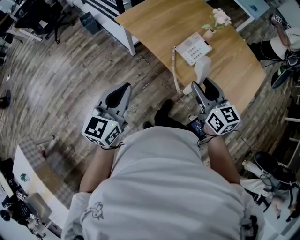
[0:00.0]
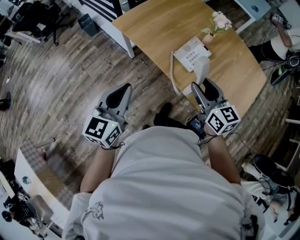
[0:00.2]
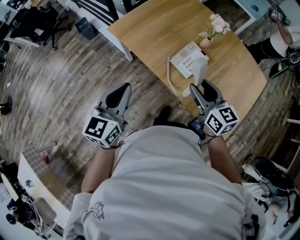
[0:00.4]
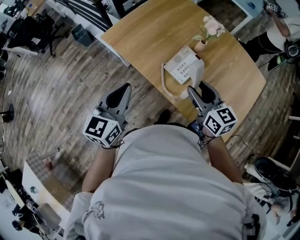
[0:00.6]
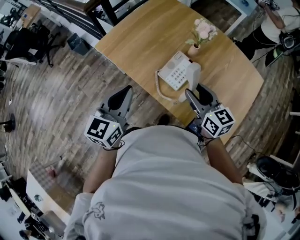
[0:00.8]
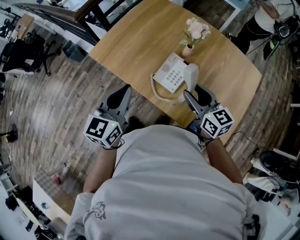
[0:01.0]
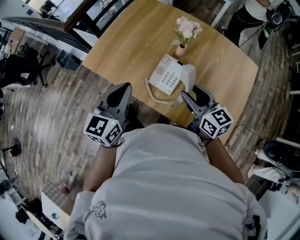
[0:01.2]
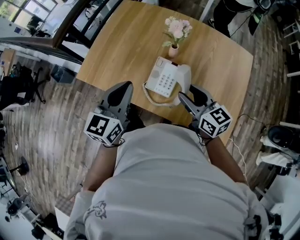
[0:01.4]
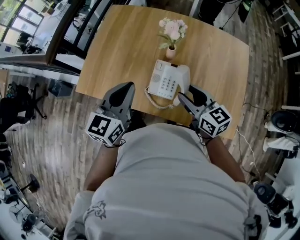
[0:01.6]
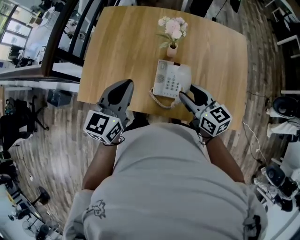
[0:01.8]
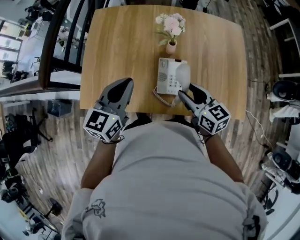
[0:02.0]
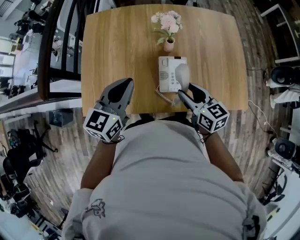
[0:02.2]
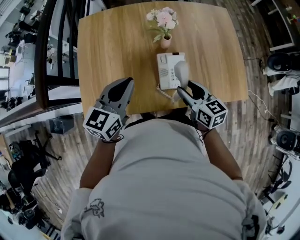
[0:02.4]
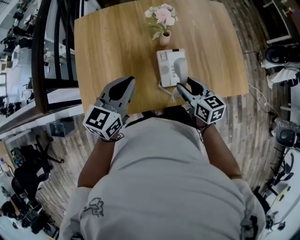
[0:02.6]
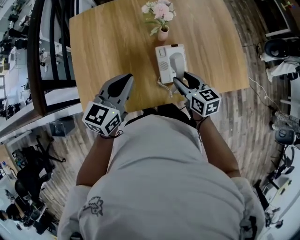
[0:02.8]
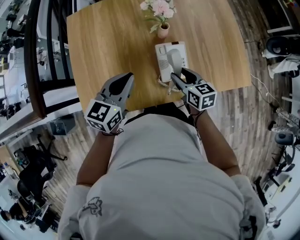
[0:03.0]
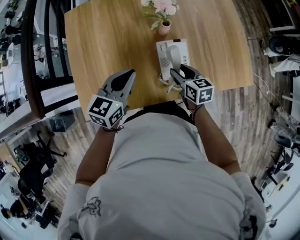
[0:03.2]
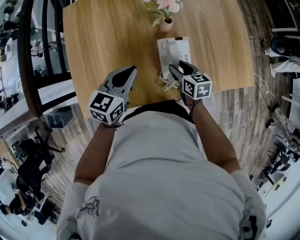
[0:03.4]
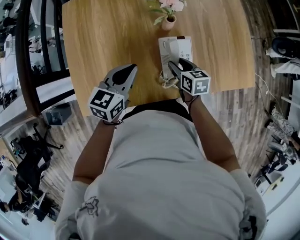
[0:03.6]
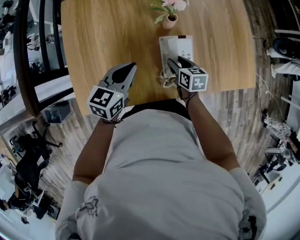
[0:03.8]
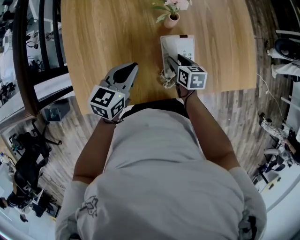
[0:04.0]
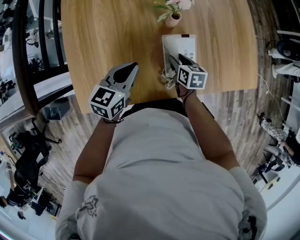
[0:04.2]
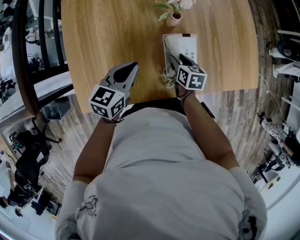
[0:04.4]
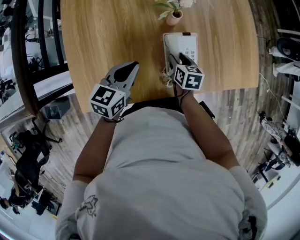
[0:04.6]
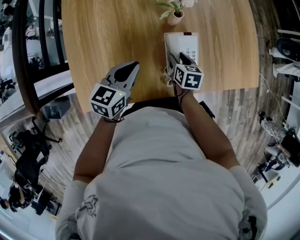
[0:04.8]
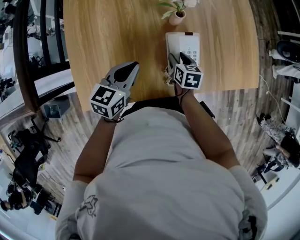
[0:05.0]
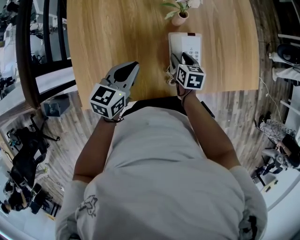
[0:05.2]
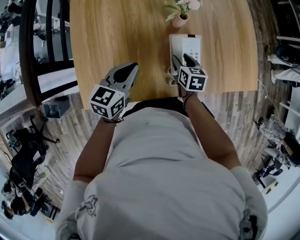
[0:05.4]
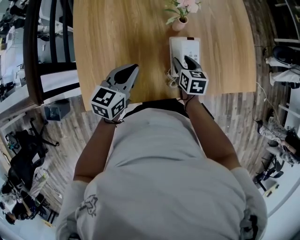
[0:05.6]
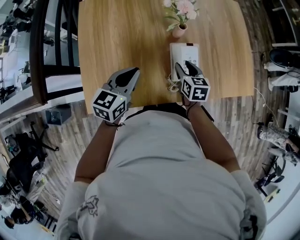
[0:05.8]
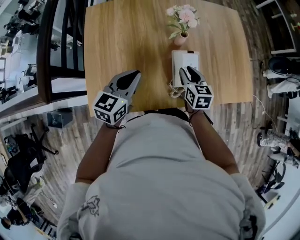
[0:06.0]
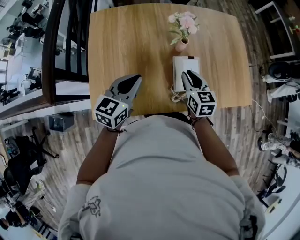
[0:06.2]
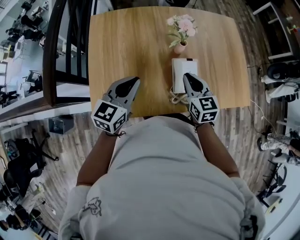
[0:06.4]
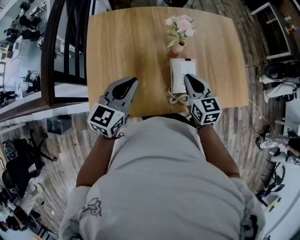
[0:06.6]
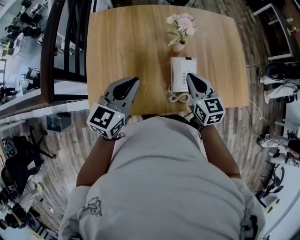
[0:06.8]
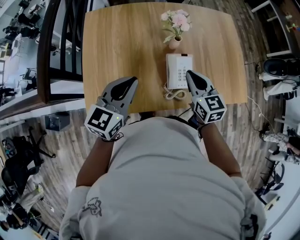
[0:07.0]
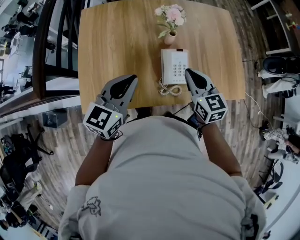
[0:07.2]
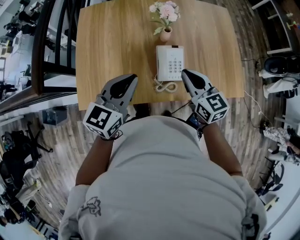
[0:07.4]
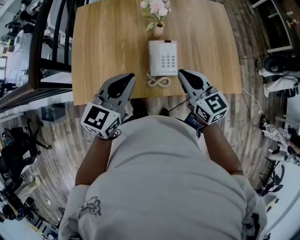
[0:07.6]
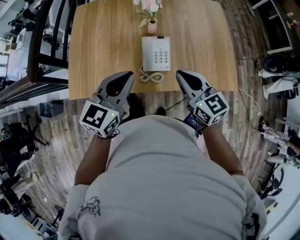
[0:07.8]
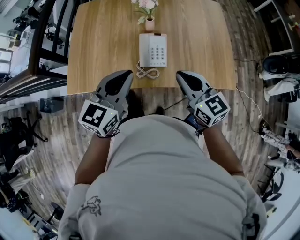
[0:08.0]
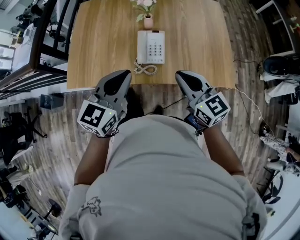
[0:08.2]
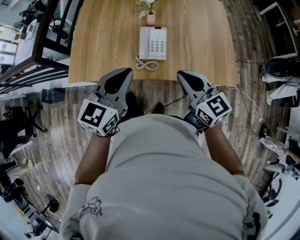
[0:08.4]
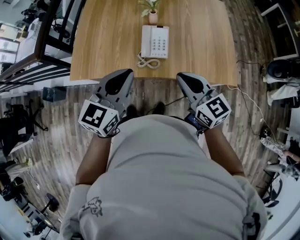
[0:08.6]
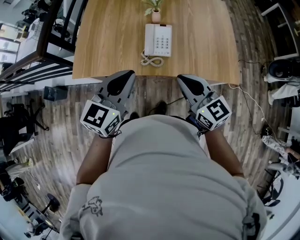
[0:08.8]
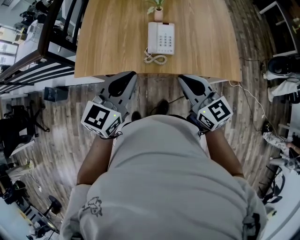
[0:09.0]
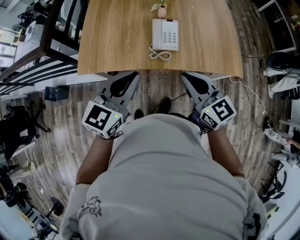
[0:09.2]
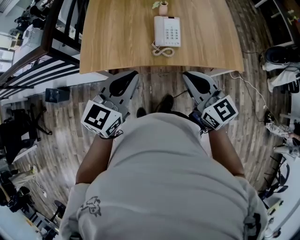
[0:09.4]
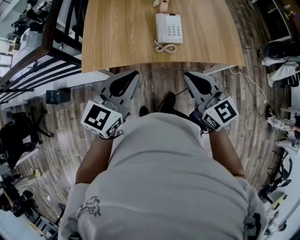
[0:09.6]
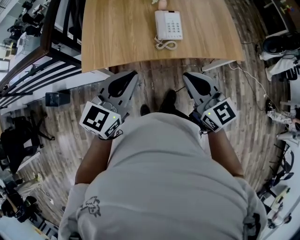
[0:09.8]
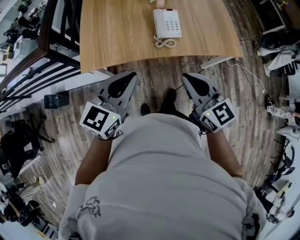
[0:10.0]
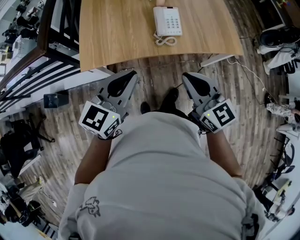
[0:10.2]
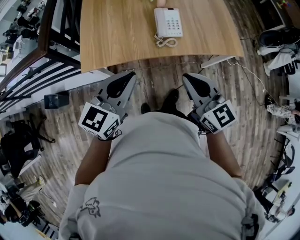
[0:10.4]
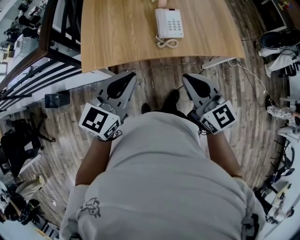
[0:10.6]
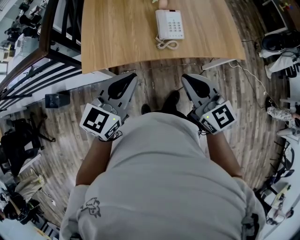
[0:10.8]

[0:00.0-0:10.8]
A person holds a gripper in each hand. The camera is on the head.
0.0 to 1.6 s: The right gripper shifts approximately 20 cm forward and to the right. The left gripper goes approximately 35 cm forward and to the right, and swivels approximately 30 degrees.
1.6 to 3.0 s: The left gripper changes place by about 15 cm, and turns by some 30 degrees. Meanwhile the right gripper is displaced downward by approximately 15 cm, and changes its angle by roughly 40 degrees.
3.0 to 4.6 s: The left gripper heads downward, covering about 10 cm. The right gripper travels downward and forward by approximately 15 cm.
4.6 to 6.2 s: The right gripper travels upward by approximately 15 cm, turns by approximately 30 degrees, and closes its fingers. The left gripper goes roughly 10 cm upward, backward and to the left.
6.2 to 7.8 s: Both grippers travel together to the right, backward and upward, some 20 cm. The right gripper turns by some 30 degrees.
7.8 to 9.2 s: Both grippers move backward, approximately 15 cm.
9.2 to 10.8 s: The left gripper is displaced to the left by about 10 cm. Meanwhile the right gripper shifts some 10 cm to the left and backward.

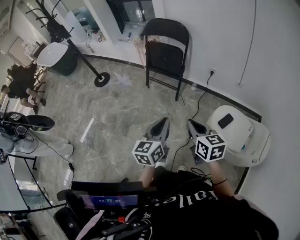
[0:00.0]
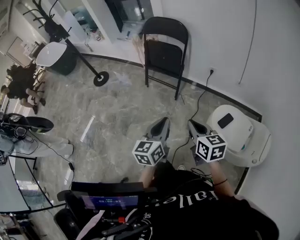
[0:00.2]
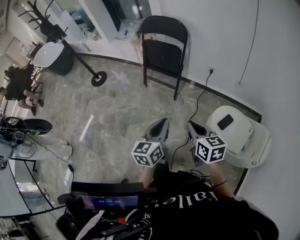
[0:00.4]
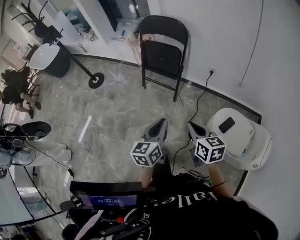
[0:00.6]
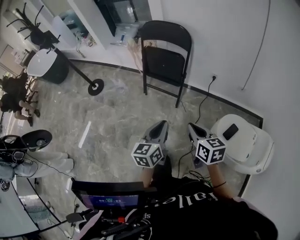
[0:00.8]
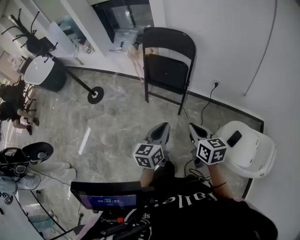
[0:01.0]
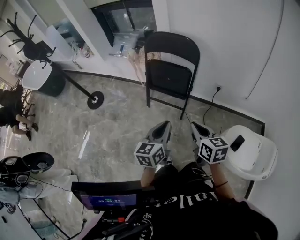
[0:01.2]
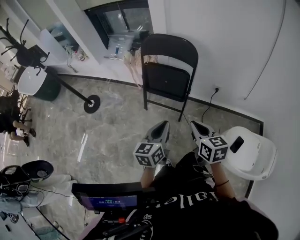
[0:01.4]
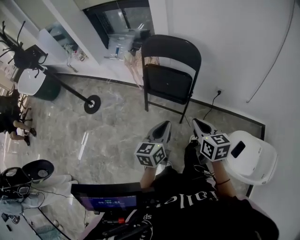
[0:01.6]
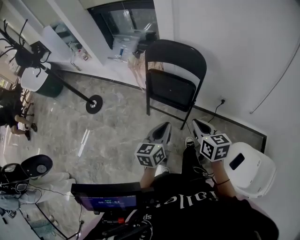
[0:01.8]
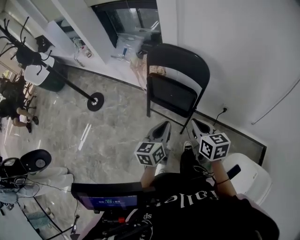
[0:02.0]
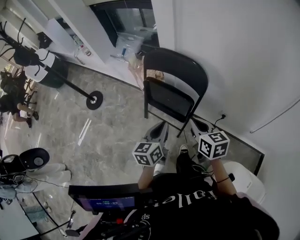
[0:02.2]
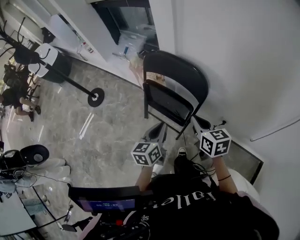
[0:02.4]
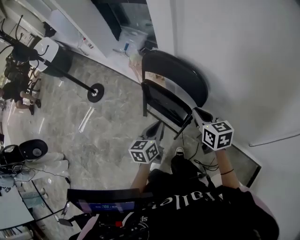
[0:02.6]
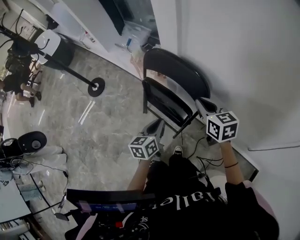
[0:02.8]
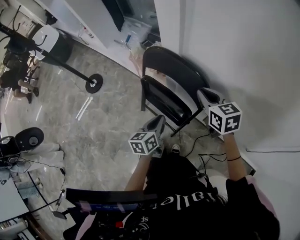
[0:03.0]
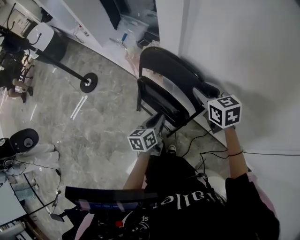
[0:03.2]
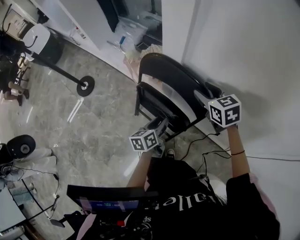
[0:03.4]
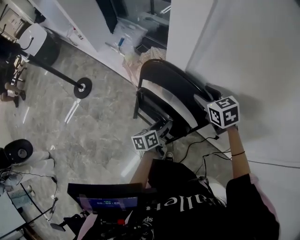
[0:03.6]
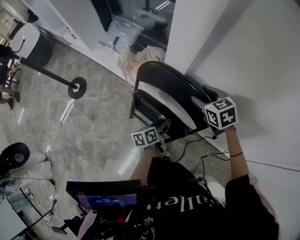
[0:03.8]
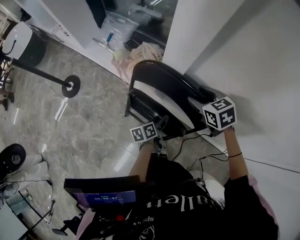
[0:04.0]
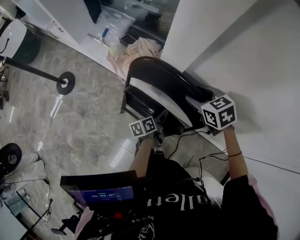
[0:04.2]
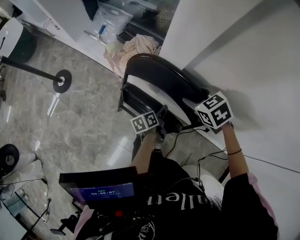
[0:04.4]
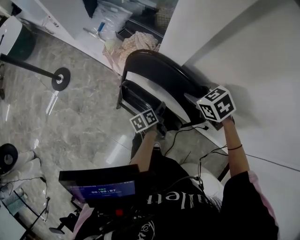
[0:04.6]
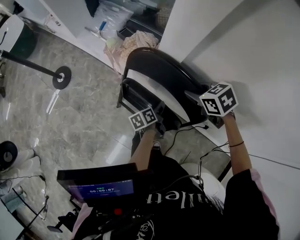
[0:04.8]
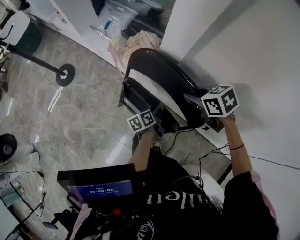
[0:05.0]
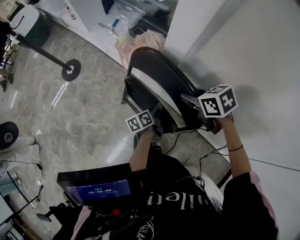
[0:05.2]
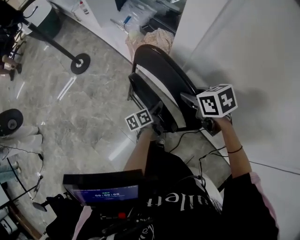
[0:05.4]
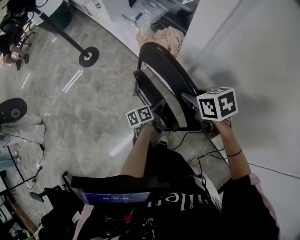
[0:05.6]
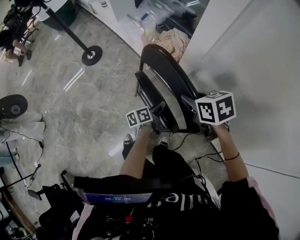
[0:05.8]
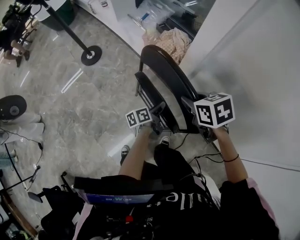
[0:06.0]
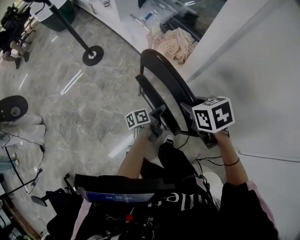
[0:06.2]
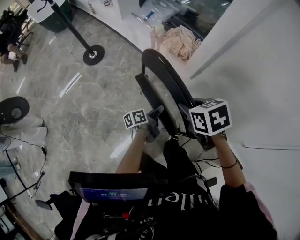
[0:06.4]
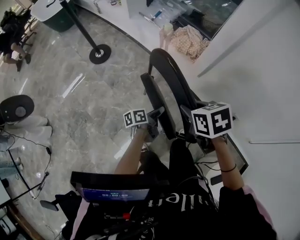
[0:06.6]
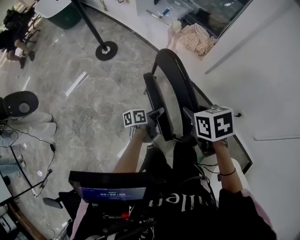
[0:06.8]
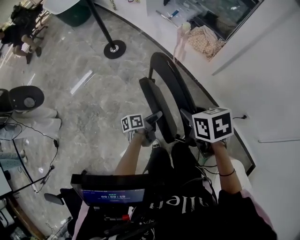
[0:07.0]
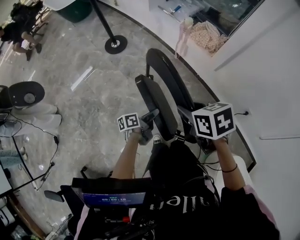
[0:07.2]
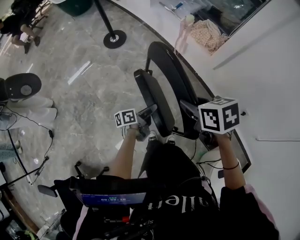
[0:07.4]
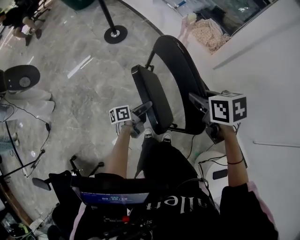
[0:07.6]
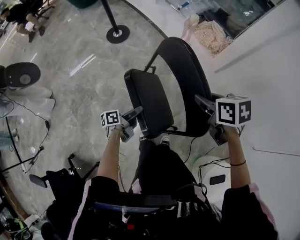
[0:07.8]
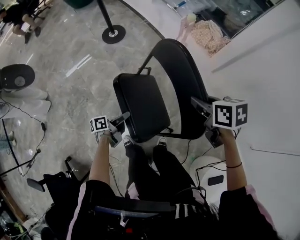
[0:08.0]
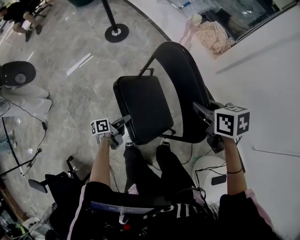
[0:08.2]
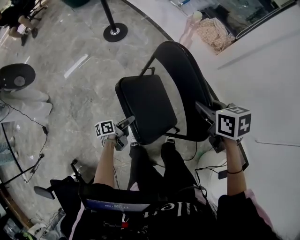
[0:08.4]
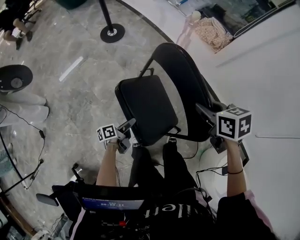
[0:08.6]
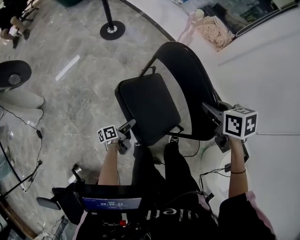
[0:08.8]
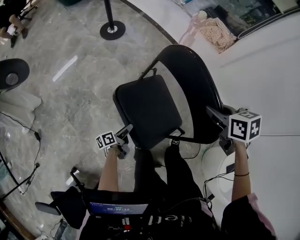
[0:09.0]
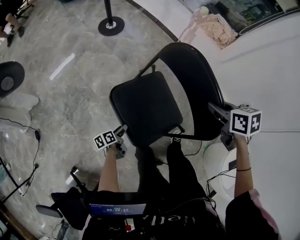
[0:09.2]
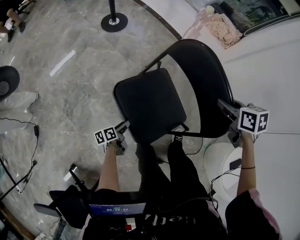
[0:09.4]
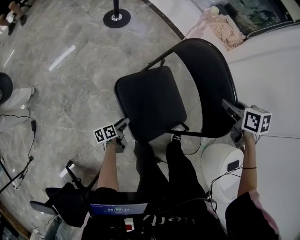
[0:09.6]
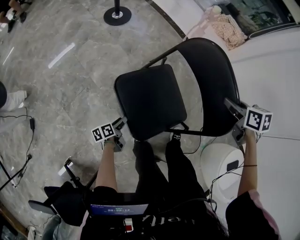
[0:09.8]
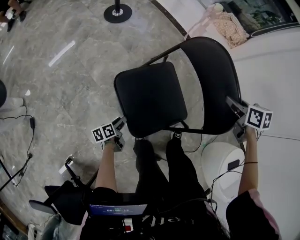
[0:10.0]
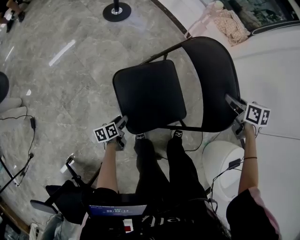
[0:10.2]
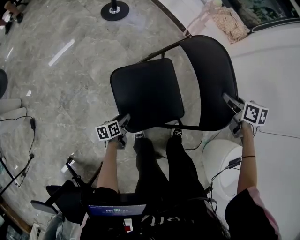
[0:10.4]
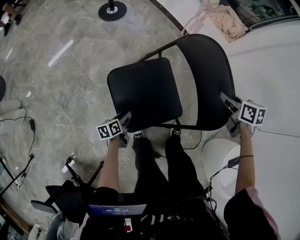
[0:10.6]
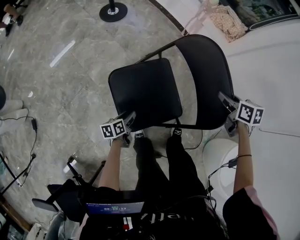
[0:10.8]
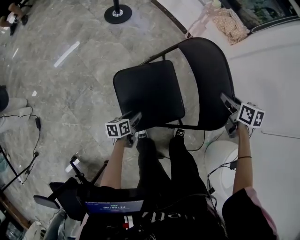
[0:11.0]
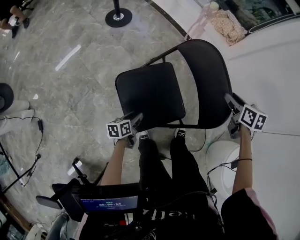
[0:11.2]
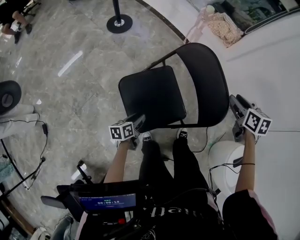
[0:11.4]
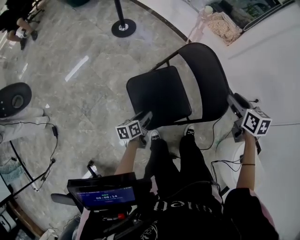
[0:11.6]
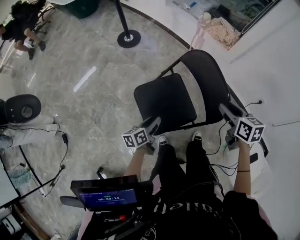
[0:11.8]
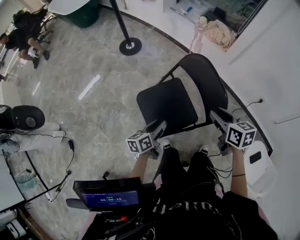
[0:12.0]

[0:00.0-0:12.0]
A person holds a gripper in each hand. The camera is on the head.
0.0 to 1.6 s: Both grippers move forward, approximately 35 cm.
1.6 to 3.0 s: The two grippers go roughly 35 cm forward. The left gripper swivels approximately 30 degrees. Meanwhile the right gripper turns by roughly 30 degrees.
3.0 to 4.4 s: The left gripper is displaced downward and forward by approximately 25 cm, changes its angle by some 30 degrees, and opens; the right gripper is displaced forward and downward by roughly 15 cm, points its fingers roughly 30 degrees further downward, and opens up.
4.4 to 6.0 s: Both grippers travel together to the left and backward, approximately 20 cm. The left gripper closes its fingers, while the right gripper closes.
6.0 to 7.6 s: The two grippers go some 35 cm to the left and backward.
7.6 to 9.0 s: The right gripper shifts roughly 15 cm to the left and downward. The left gripper heads to the left, downward and backward, covering about 30 cm, and opens up.
9.0 to 10.4 s: The left gripper shifts approximately 10 cm downward, and changes its angle by roughly 30 degrees; the right gripper travels downward and to the right by roughly 15 cm.
10.4 to 12.0 s: The left gripper is displaced upward by some 30 cm, and changes its angle by about 30 degrees; the right gripper is displaced upward, backward and to the left by about 25 cm.

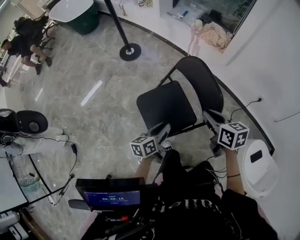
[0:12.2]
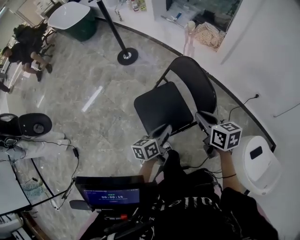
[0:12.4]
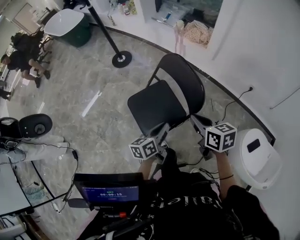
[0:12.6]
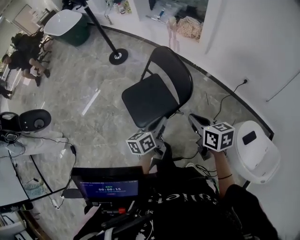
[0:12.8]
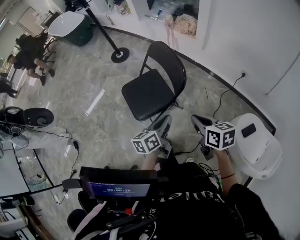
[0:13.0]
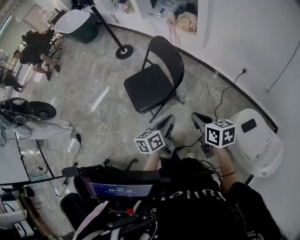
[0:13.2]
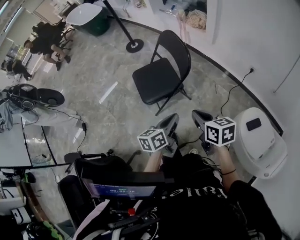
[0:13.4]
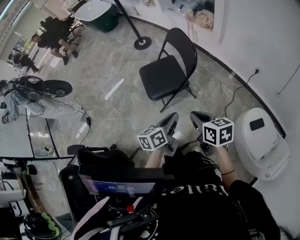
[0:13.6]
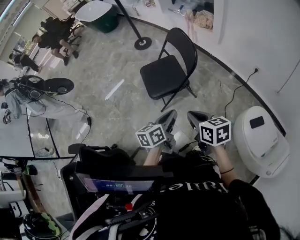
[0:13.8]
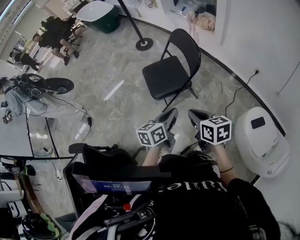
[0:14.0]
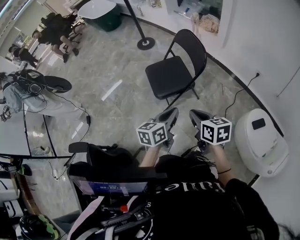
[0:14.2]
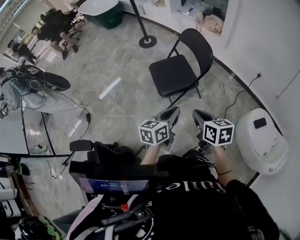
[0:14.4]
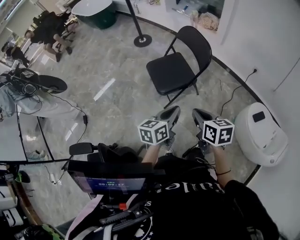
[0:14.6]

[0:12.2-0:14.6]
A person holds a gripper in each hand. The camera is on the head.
12.2 to 13.4 s: Both grippers move backward and to the right, some 40 cm. The left gripper closes.
13.4 to 14.6 s: The right gripper shifts about 20 cm to the left and backward, while the left gripper heads to the left, covering approximately 20 cm.
